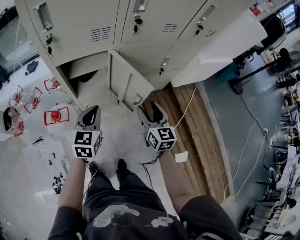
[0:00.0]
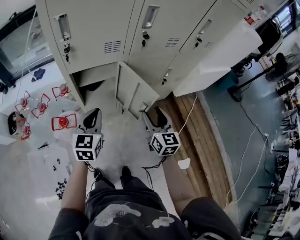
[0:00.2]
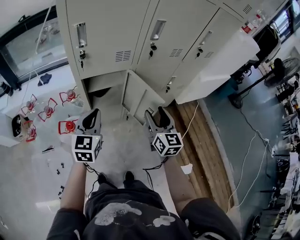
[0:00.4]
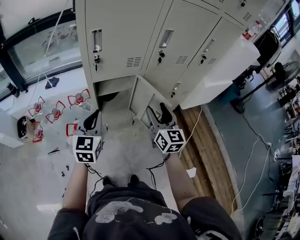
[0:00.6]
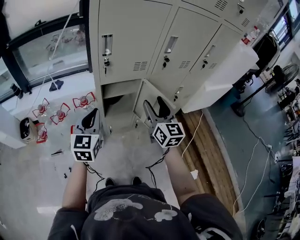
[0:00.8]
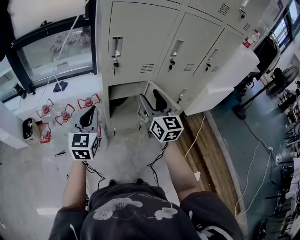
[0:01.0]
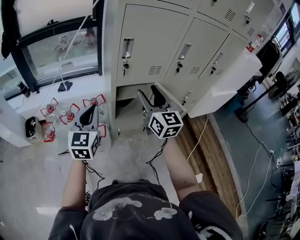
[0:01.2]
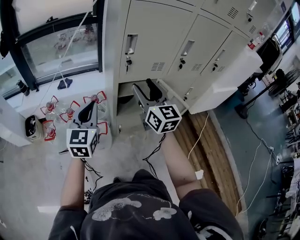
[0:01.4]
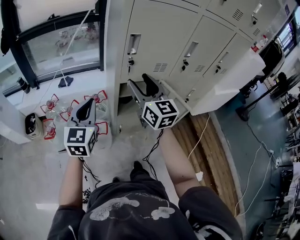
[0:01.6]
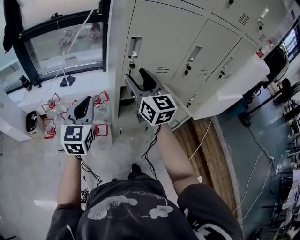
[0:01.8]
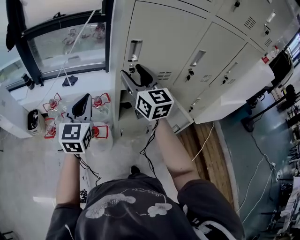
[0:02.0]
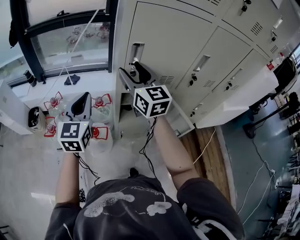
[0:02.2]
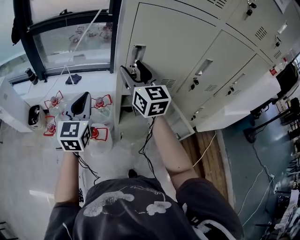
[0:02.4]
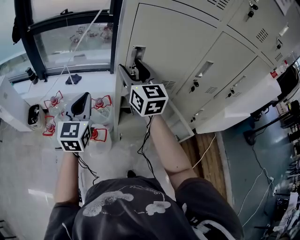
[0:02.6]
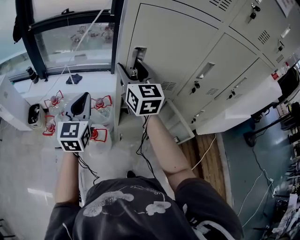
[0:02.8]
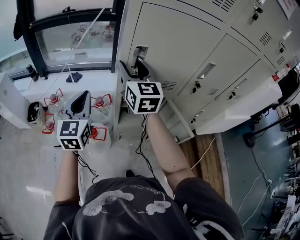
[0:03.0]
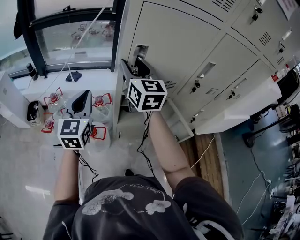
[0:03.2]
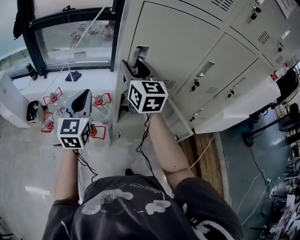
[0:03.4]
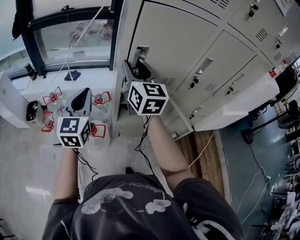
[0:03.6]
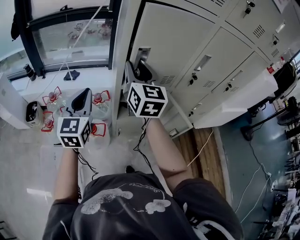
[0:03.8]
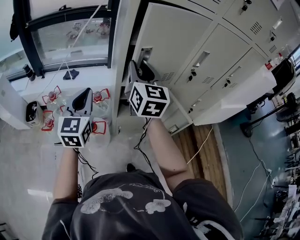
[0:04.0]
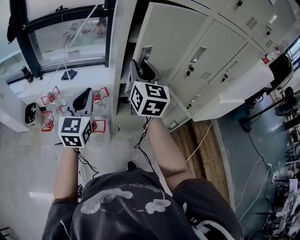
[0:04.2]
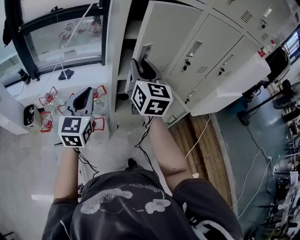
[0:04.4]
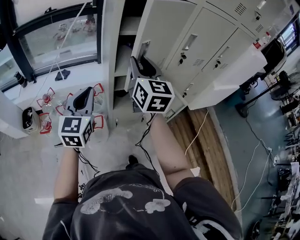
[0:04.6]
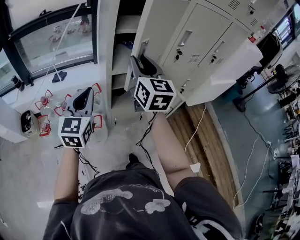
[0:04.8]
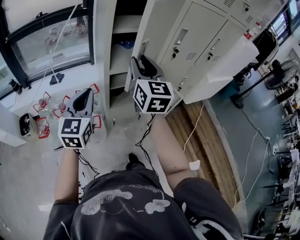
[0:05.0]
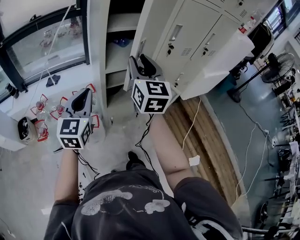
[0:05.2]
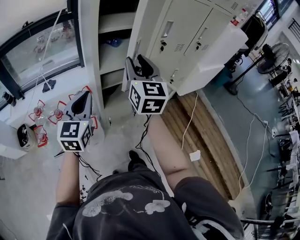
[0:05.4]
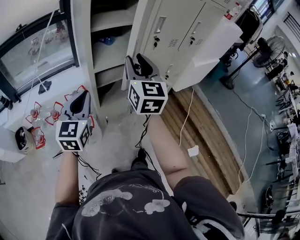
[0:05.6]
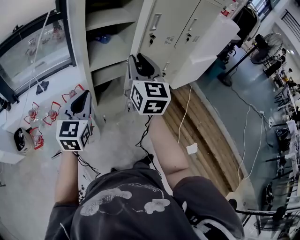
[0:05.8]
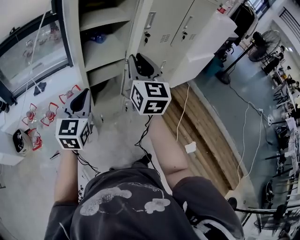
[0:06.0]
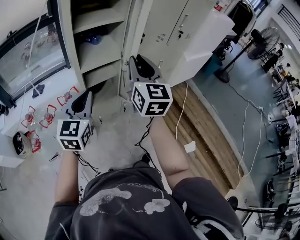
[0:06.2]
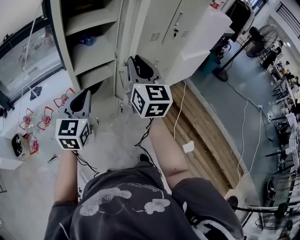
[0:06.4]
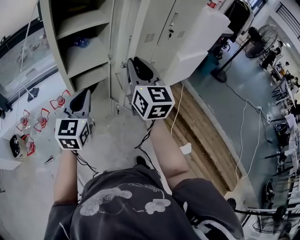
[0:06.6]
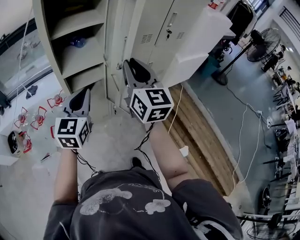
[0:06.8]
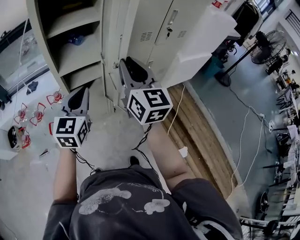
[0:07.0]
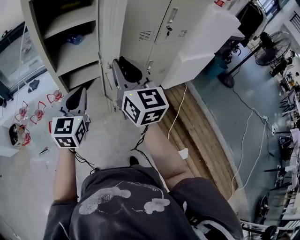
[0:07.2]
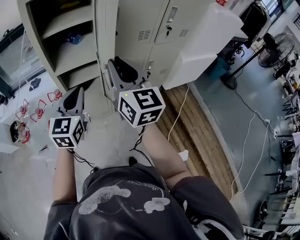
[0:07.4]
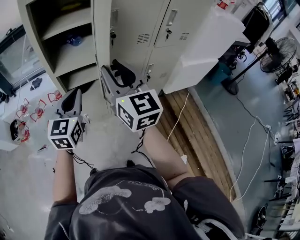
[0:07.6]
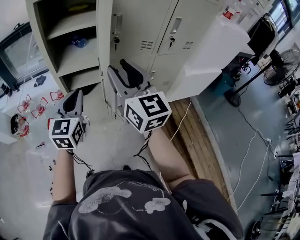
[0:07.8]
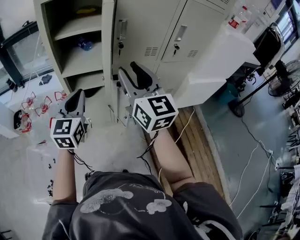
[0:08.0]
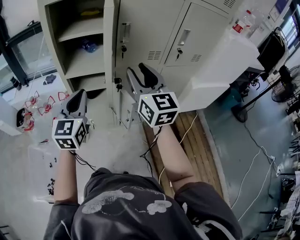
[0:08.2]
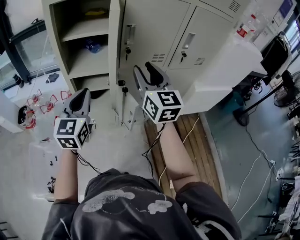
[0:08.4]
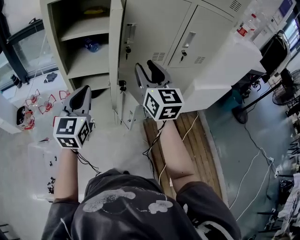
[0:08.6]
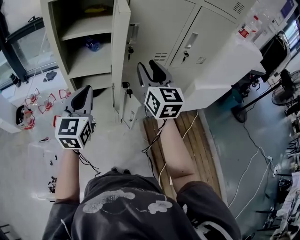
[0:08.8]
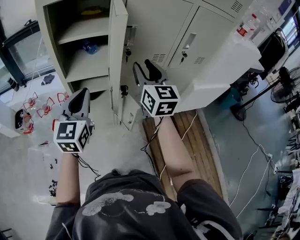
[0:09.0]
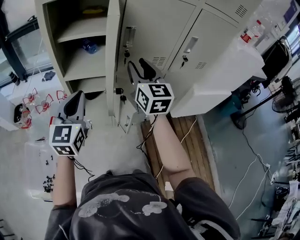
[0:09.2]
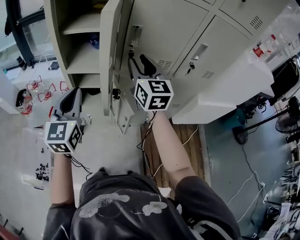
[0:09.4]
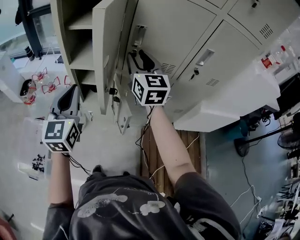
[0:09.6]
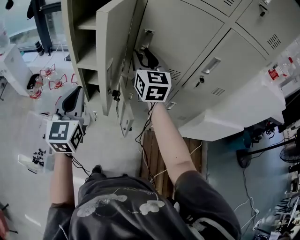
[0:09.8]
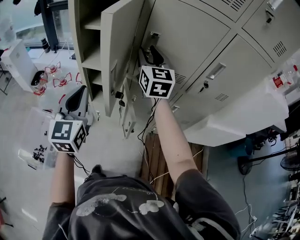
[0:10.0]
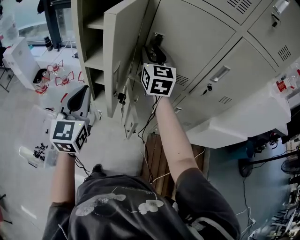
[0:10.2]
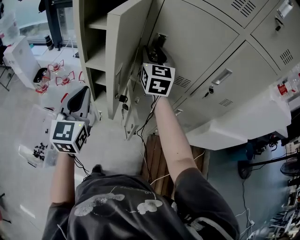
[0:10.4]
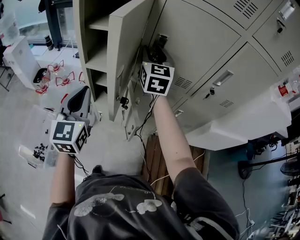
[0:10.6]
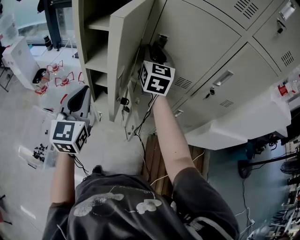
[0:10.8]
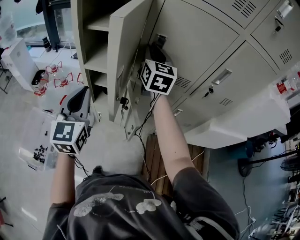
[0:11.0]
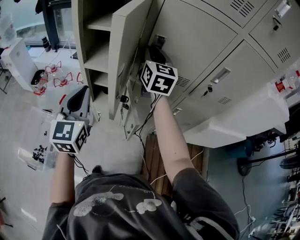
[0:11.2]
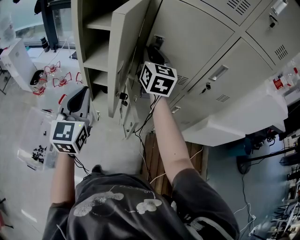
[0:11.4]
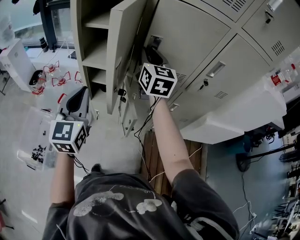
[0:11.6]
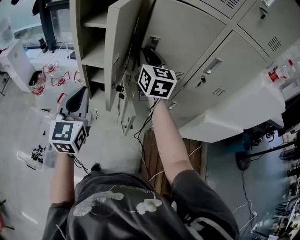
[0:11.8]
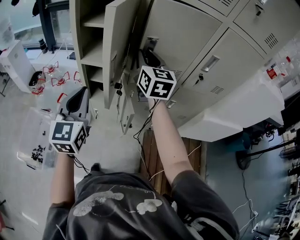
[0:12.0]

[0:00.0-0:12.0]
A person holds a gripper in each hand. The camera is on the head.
0:00.0 to 0:01.6: The grippers both shift to the left and upward by roughly 40 cm. The left gripper turns by about 20 degrees. The right gripper rotates about 30 degrees.
0:01.6 to 0:03.0: The left gripper moves forward, approximately 10 cm. Meanwhile the right gripper travels forward by about 15 cm.
0:03.0 to 0:04.4: The left gripper moves backward, some 5 cm, while the right gripper shifts some 10 cm backward, and closes.
0:04.4 to 0:06.0: The left gripper goes some 10 cm to the right; the right gripper heads to the right and backward, covering some 15 cm.
0:06.0 to 0:07.6: The two grippers go roughly 15 cm to the right. The right gripper swivels roughly 20 degrees.
0:07.6 to 0:09.0: The right gripper heads forward and to the right, covering approximately 15 cm. Meanwhile the left gripper shifts by about 5 cm.
0:09.0 to 0:10.4: The right gripper travels forward by roughly 15 cm; the left gripper turns by about 20 degrees.
0:10.4 to 0:12.0: The right gripper shifts about 5 cm backward.

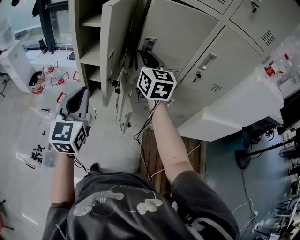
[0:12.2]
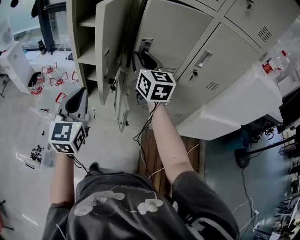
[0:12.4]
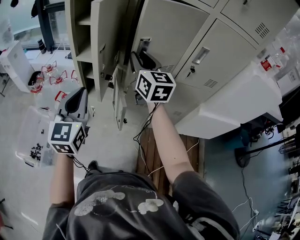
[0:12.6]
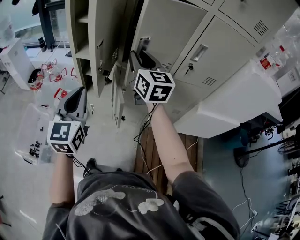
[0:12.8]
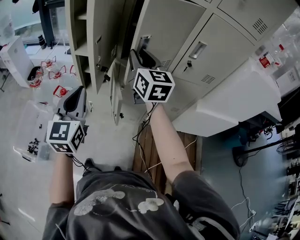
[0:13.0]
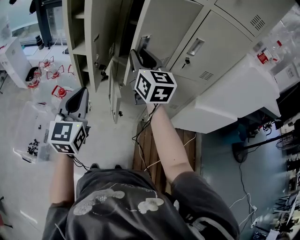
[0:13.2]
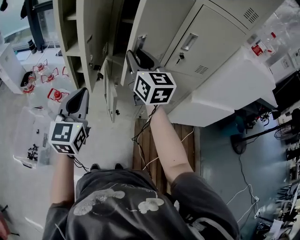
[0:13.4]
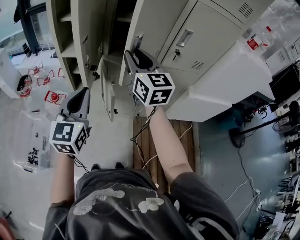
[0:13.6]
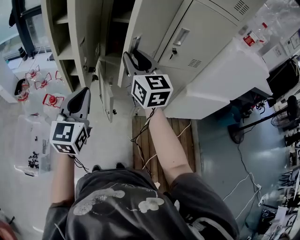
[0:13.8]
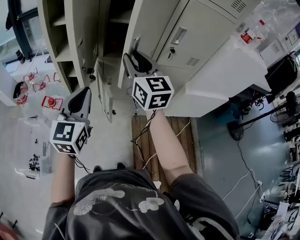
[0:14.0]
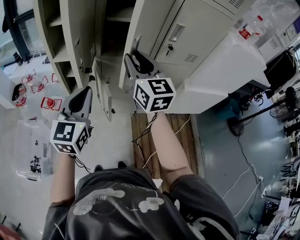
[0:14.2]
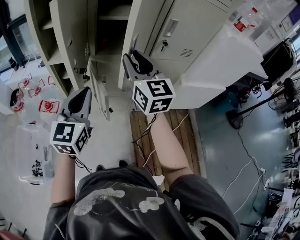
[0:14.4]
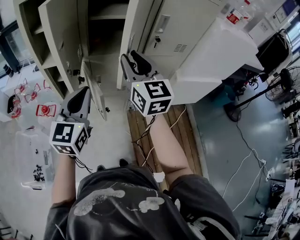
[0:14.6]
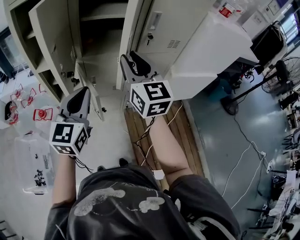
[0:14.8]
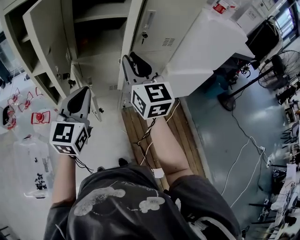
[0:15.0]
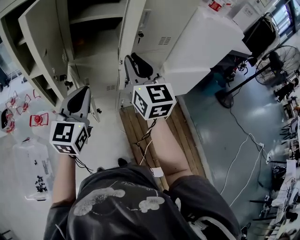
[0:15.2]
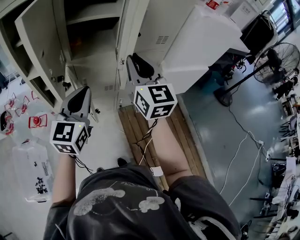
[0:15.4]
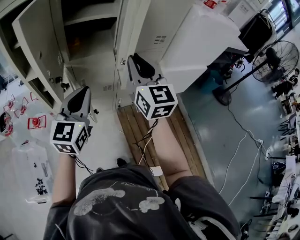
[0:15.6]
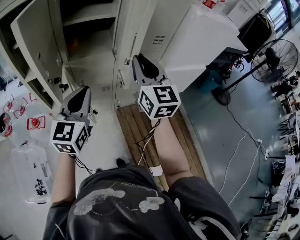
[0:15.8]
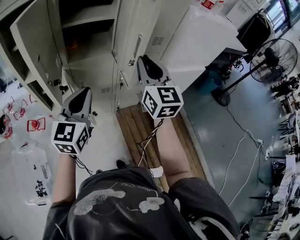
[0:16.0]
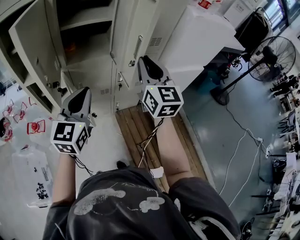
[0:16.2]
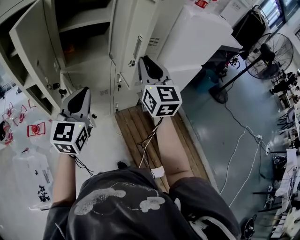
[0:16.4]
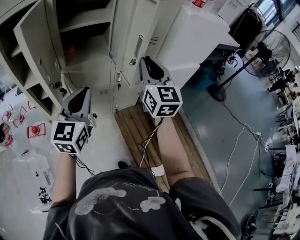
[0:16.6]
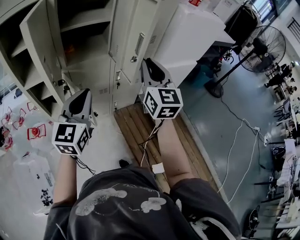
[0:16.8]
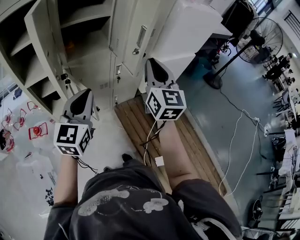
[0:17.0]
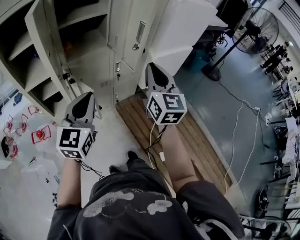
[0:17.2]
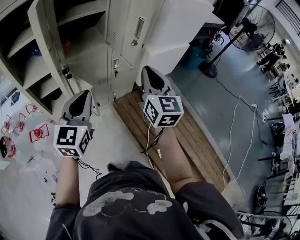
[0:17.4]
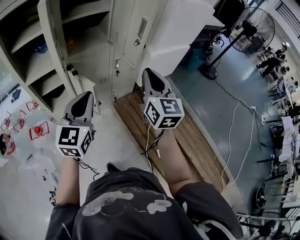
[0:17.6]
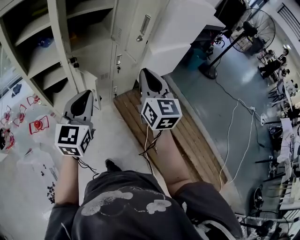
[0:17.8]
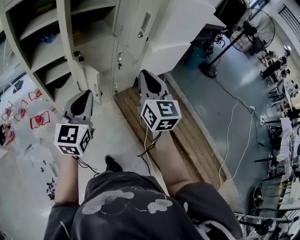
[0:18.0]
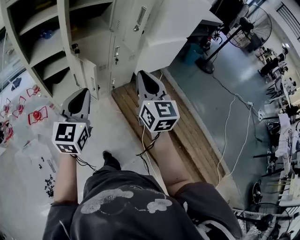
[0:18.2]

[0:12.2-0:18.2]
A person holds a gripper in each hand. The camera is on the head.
0:12.2 to 0:13.8: The right gripper goes approximately 10 cm backward, while the left gripper heads to the right, covering roughly 10 cm.
0:13.8 to 0:15.2: The left gripper goes about 10 cm to the right. The right gripper heads to the right and backward, covering roughly 10 cm.
0:15.2 to 0:16.6: The right gripper shifts some 10 cm to the right.
0:16.6 to 0:18.2: The two grippers go roughly 20 cm backward.

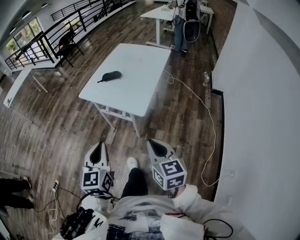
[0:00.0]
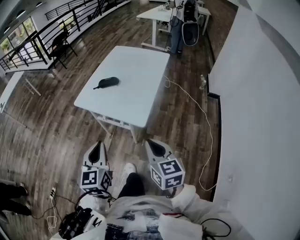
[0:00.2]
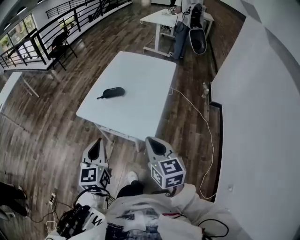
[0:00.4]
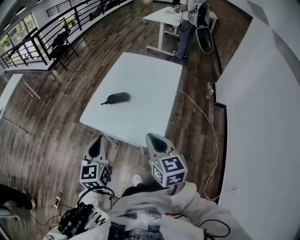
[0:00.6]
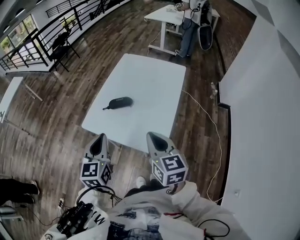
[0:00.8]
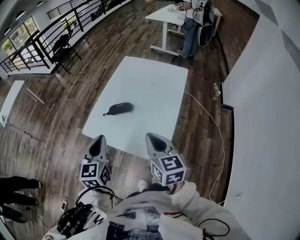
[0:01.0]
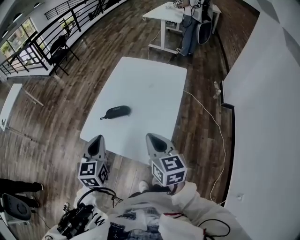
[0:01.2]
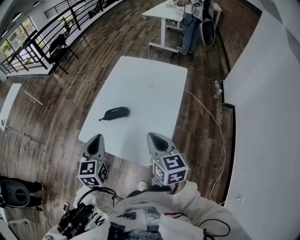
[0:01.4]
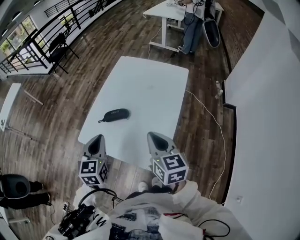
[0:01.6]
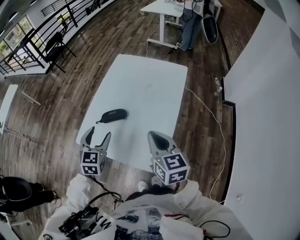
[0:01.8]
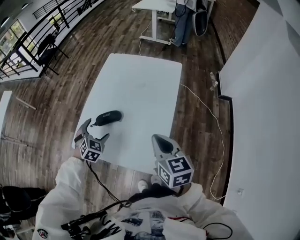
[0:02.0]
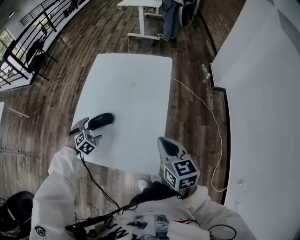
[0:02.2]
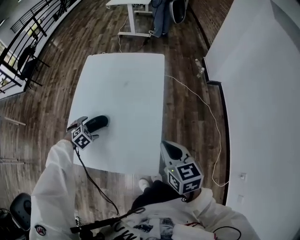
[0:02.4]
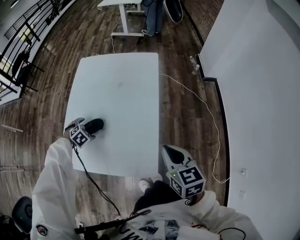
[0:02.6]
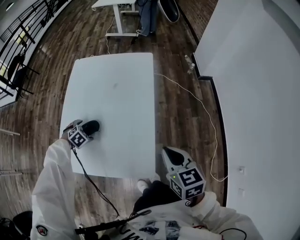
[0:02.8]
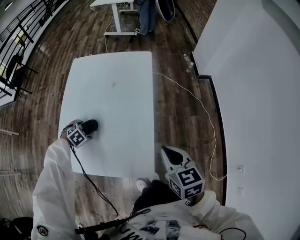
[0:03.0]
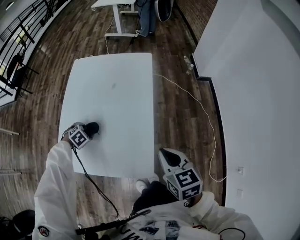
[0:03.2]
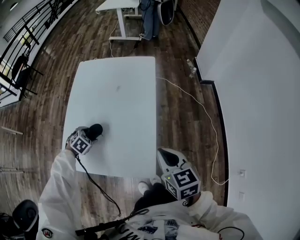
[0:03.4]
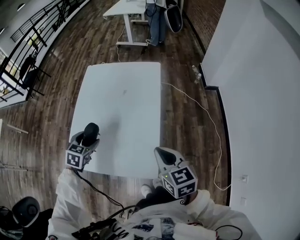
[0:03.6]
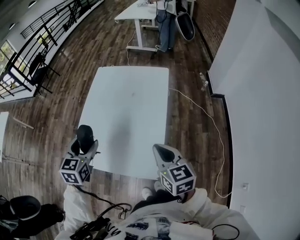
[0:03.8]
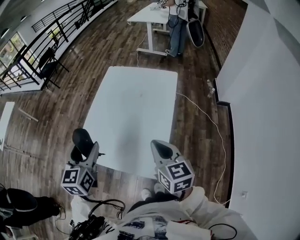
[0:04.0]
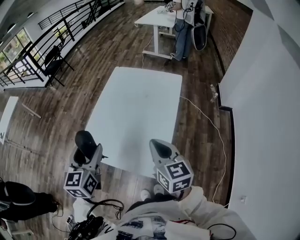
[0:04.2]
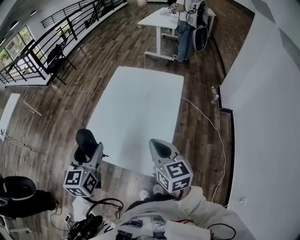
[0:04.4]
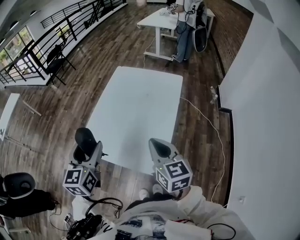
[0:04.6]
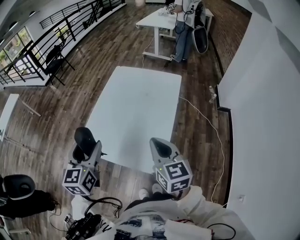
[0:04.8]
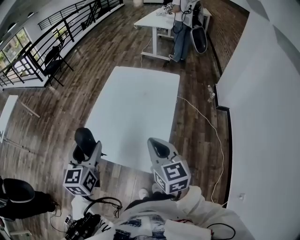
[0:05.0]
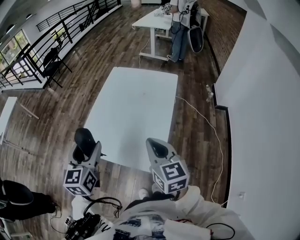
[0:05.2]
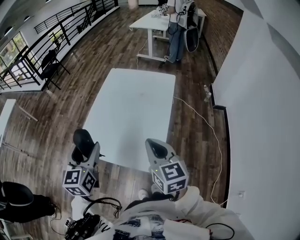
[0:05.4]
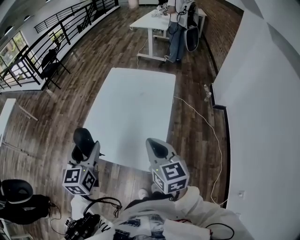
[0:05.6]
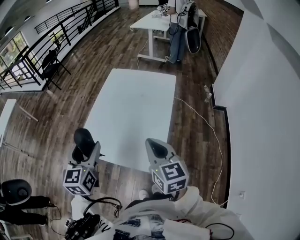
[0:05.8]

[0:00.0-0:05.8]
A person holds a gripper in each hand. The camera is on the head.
0:00.0 to 0:01.4: The two grippers go about 40 cm forward.
0:01.4 to 0:02.8: The left gripper moves downward, roughly 30 cm, tilts its fingers roughly 60 degrees downward, and opens its fingers. Meanwhile the right gripper shifts by roughly 15 cm, and swivels roughly 20 degrees.
0:02.8 to 0:04.4: The left gripper is displaced upward by roughly 35 cm, and points its fingers about 60 degrees further upward. The right gripper changes place by approximately 15 cm, and swivels some 20 degrees.
0:04.4 to 0:05.8: The grippers stay close to where they were, moving slightly.
